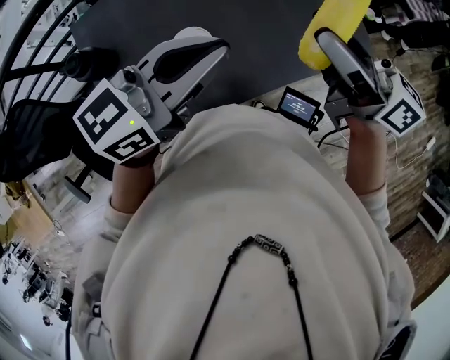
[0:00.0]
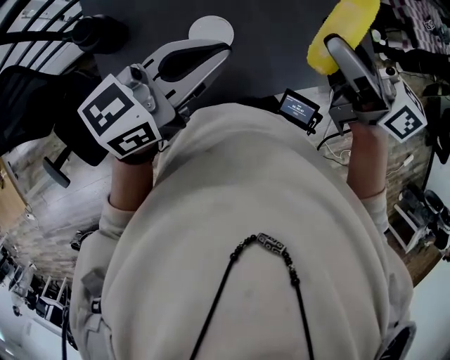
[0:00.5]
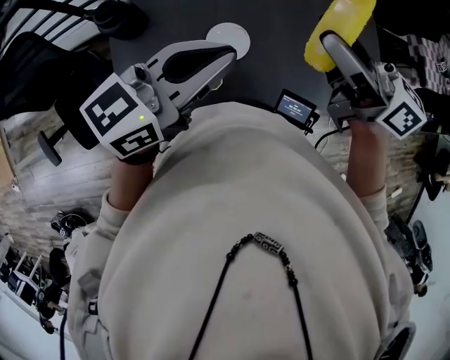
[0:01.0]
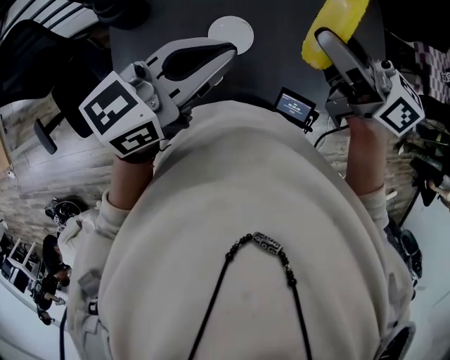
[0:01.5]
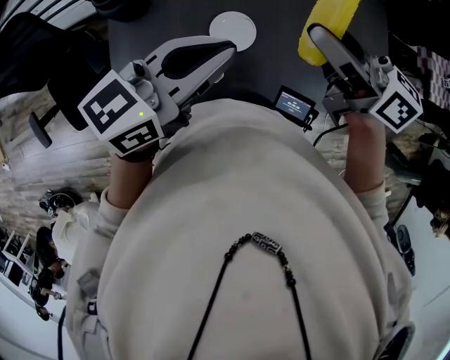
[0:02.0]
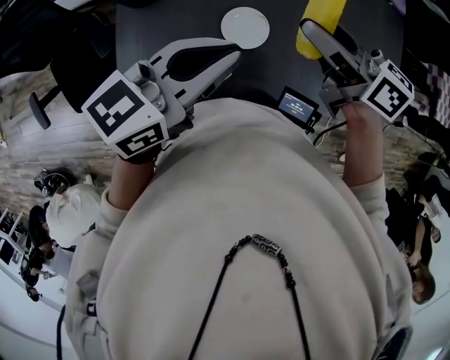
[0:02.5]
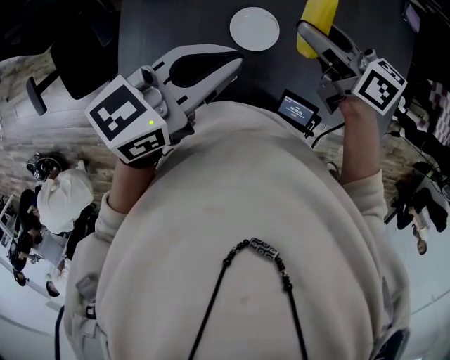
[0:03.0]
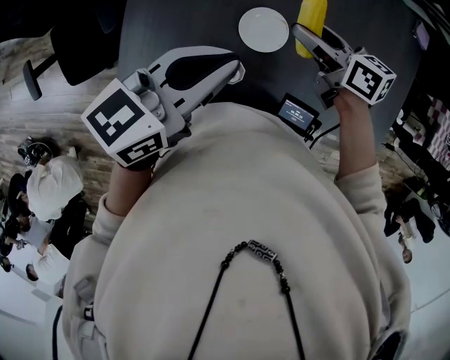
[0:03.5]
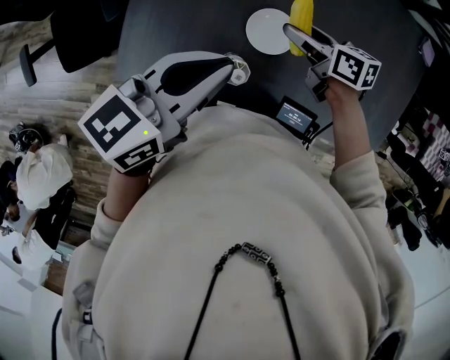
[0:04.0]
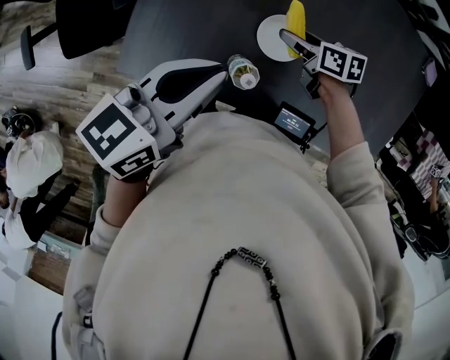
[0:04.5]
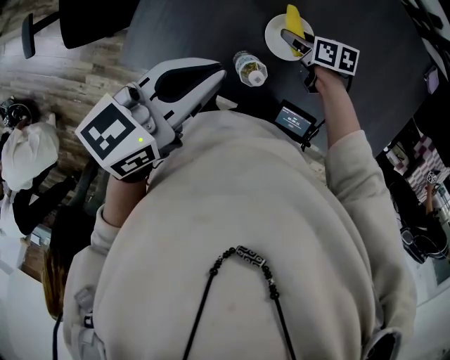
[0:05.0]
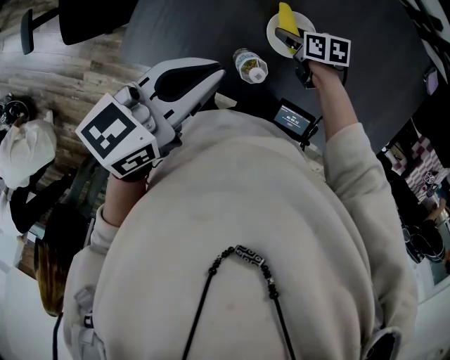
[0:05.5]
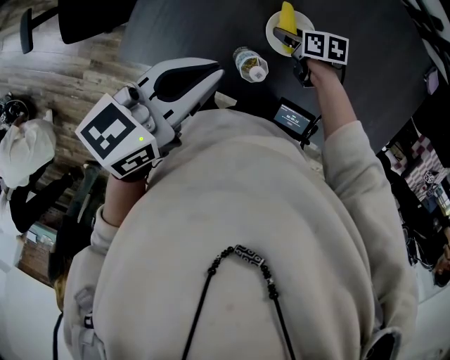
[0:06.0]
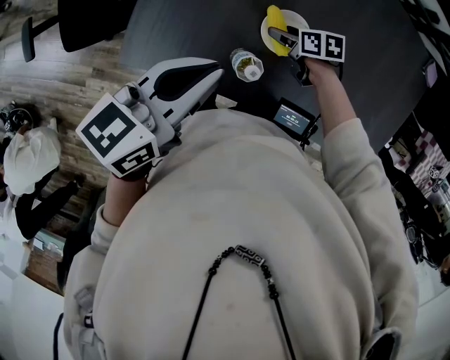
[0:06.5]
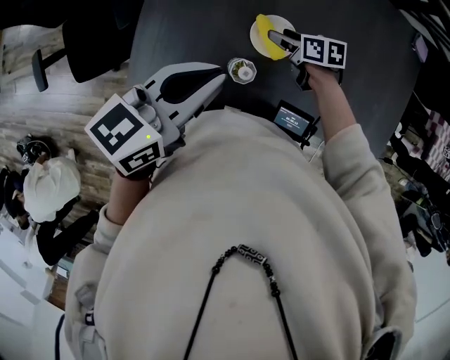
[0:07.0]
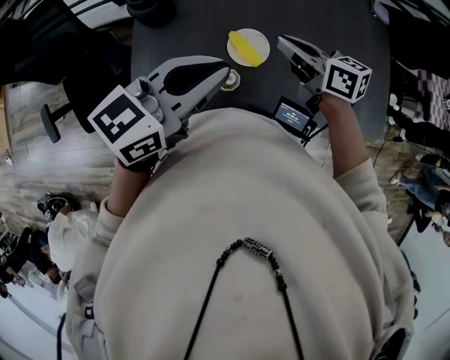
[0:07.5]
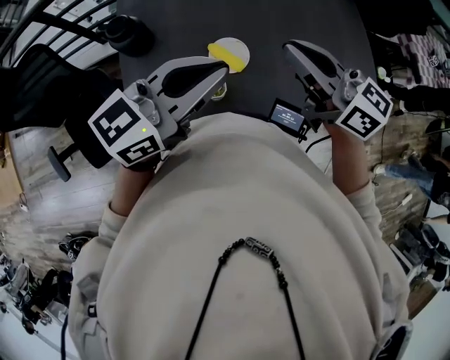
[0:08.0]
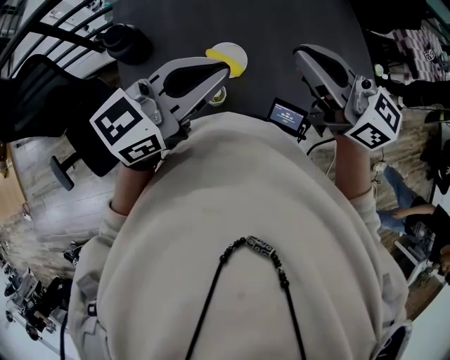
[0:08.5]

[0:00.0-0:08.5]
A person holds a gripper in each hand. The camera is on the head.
0:00.0 to 0:02.0: There are only small adjustments of the grippers.
0:02.0 to 0:04.0: The right gripper heads downward, covering some 25 cm, and turns by about 30 degrees; the left gripper moves downward, approximately 5 cm, and turns by roughly 20 degrees.
0:04.0 to 0:06.5: The right gripper goes about 15 cm downward, and rotates about 20 degrees.
0:06.5 to 0:08.5: The right gripper moves upward, about 40 cm, tilts its fingers roughly 60 degrees upward, and closes up, while the left gripper moves upward, roughly 10 cm, and changes its angle by about 50 degrees.

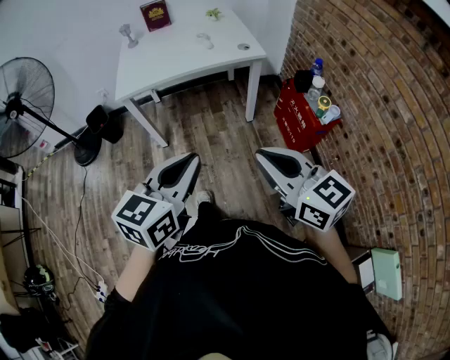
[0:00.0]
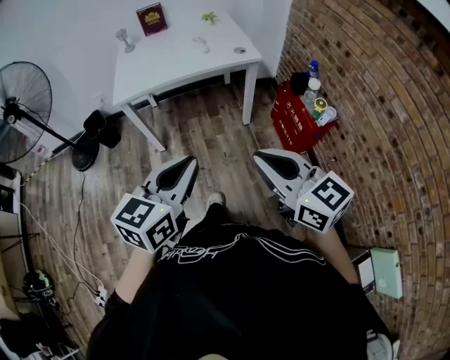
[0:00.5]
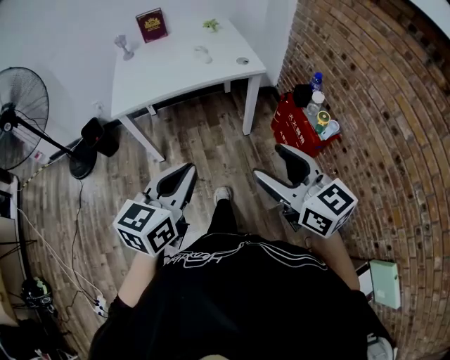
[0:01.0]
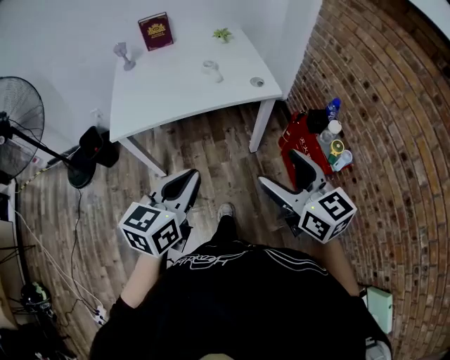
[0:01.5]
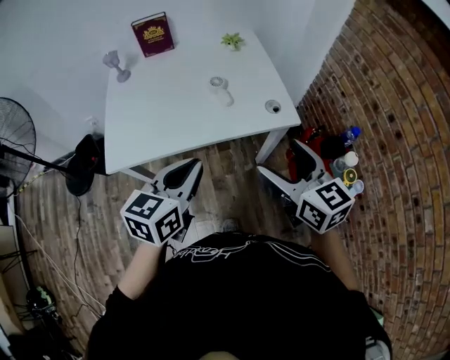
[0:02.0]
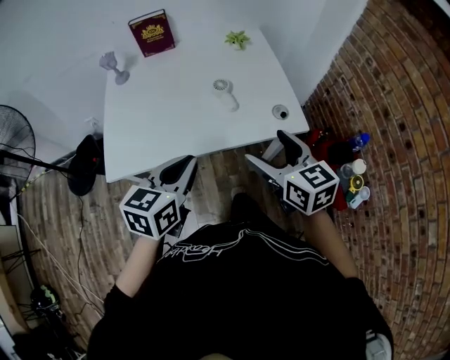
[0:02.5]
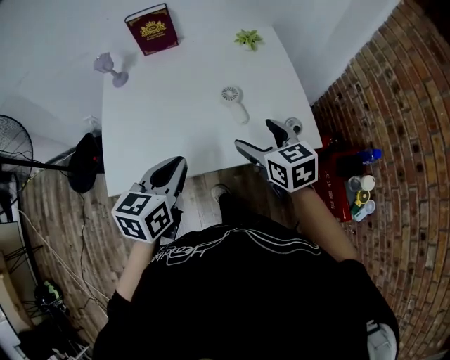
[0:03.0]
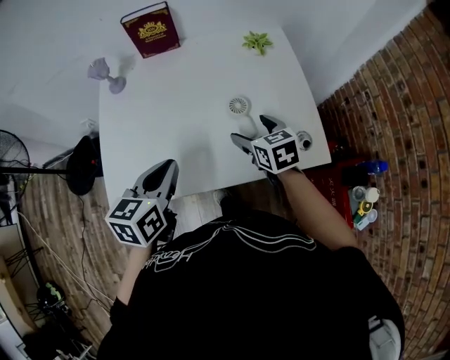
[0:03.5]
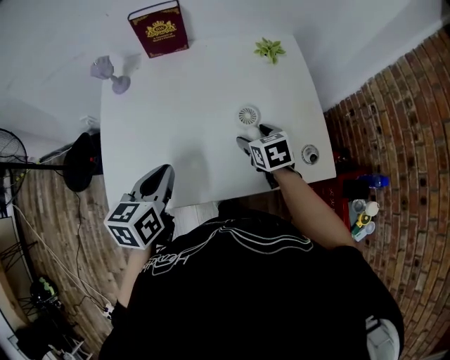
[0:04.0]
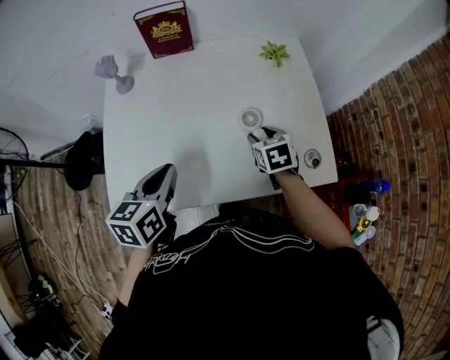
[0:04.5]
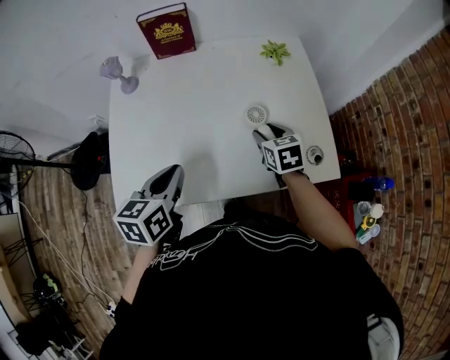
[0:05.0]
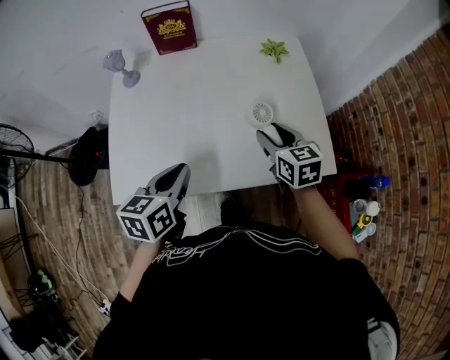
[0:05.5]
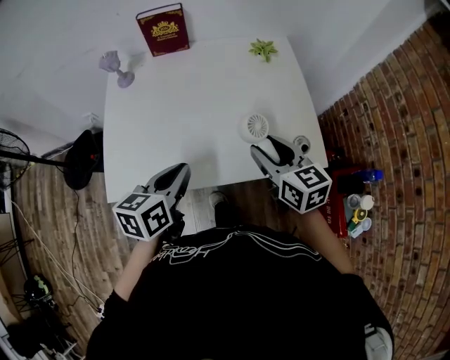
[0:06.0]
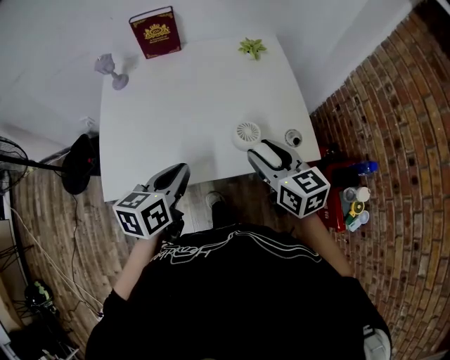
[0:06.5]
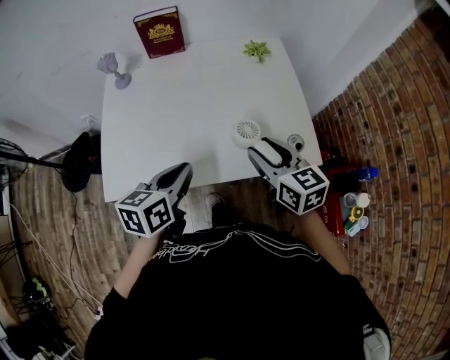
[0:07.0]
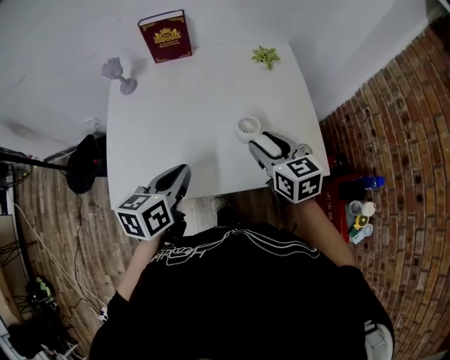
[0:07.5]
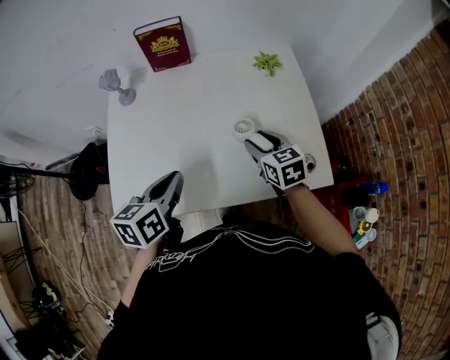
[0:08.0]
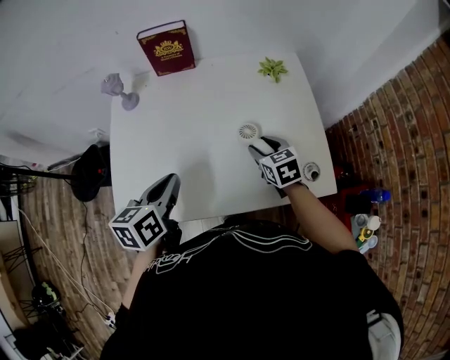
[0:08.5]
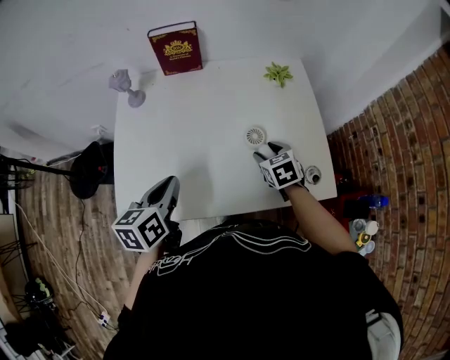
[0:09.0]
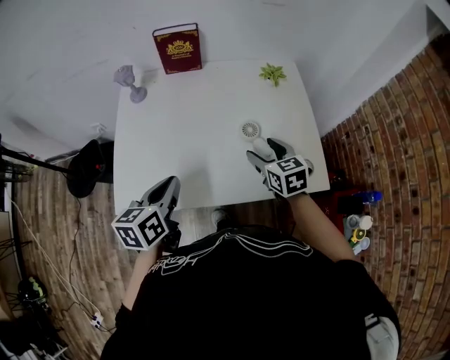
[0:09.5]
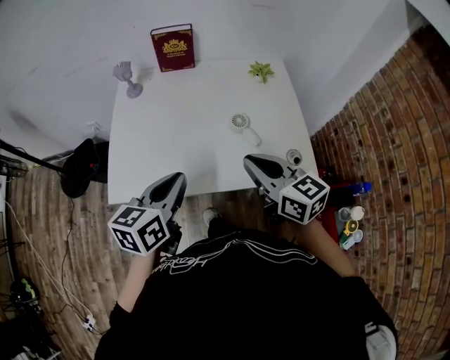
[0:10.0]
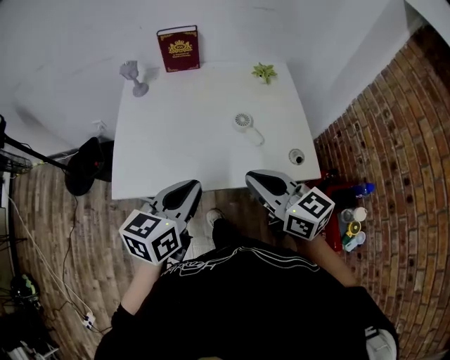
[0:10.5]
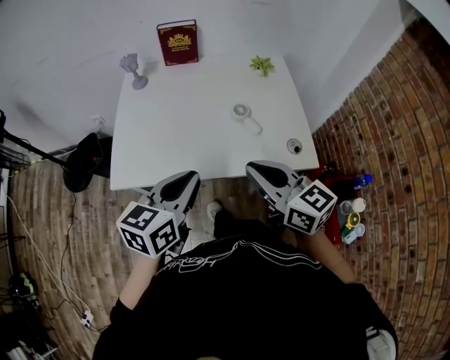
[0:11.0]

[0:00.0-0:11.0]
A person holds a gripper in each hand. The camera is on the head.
0:00.0 to 0:02.0: The two grippers travel together, forward, some 40 cm. The right gripper opens its fingers.
0:02.0 to 0:03.5: The left gripper heads forward and to the left, covering about 20 cm. The right gripper heads forward and downward, covering approximately 35 cm, and swivels roughly 30 degrees.
0:03.5 to 0:05.5: The right gripper goes downward and returns, some 5 cm each way, and closes up.
0:05.5 to 0:07.5: The right gripper reaches approximately 10 cm backward, then returns.
0:07.5 to 0:09.0: The left gripper moves to the left, about 5 cm, while the right gripper heads downward and forward, covering roughly 15 cm, and swivels roughly 30 degrees.
0:09.0 to 0:11.0: The right gripper travels upward and backward by approximately 30 cm, points its fingers some 40 degrees further upward, and closes its fingers, while the left gripper is displaced backward, upward and to the right by about 20 cm, and changes its angle by some 20 degrees.

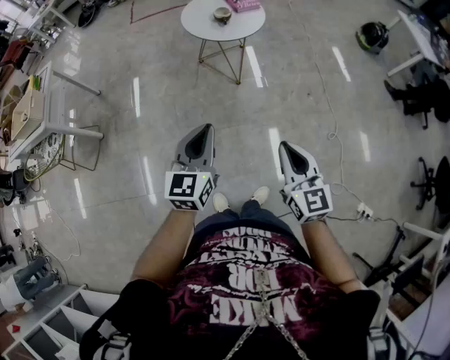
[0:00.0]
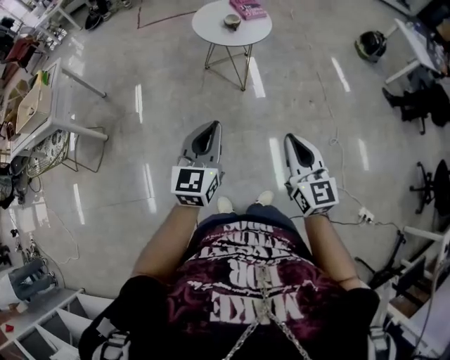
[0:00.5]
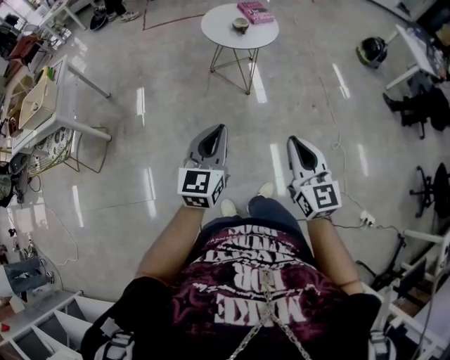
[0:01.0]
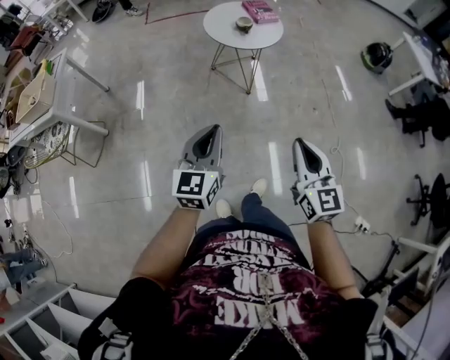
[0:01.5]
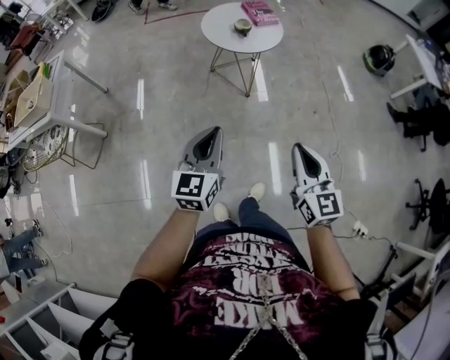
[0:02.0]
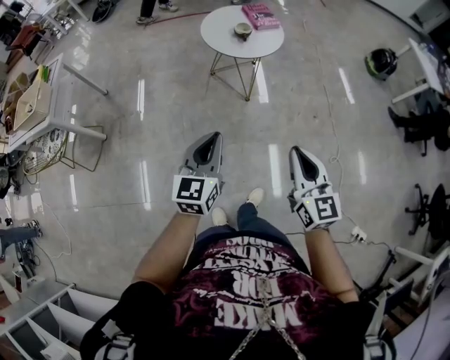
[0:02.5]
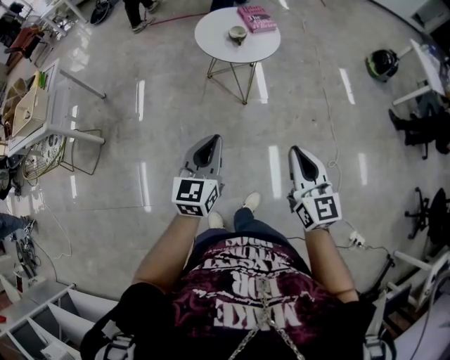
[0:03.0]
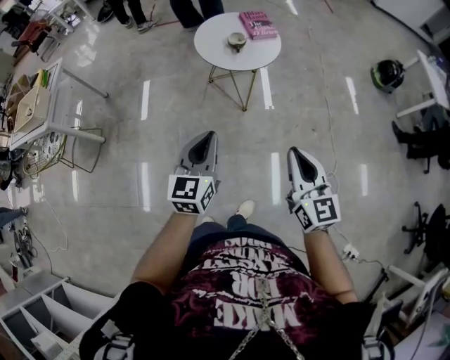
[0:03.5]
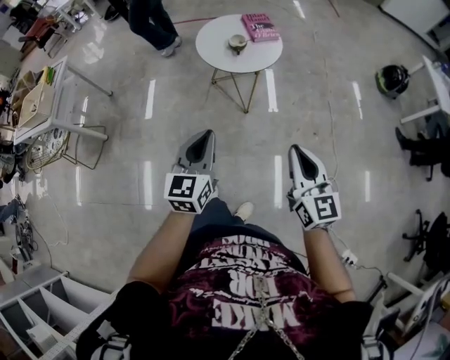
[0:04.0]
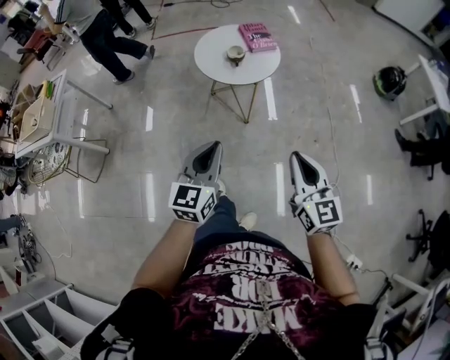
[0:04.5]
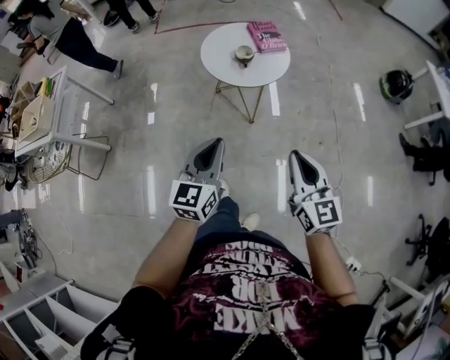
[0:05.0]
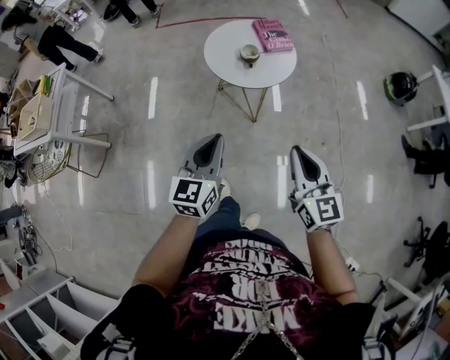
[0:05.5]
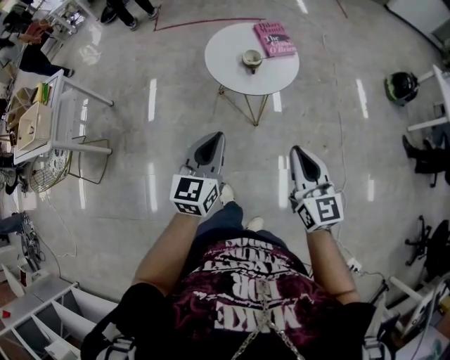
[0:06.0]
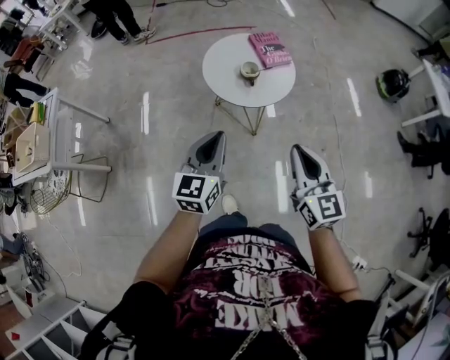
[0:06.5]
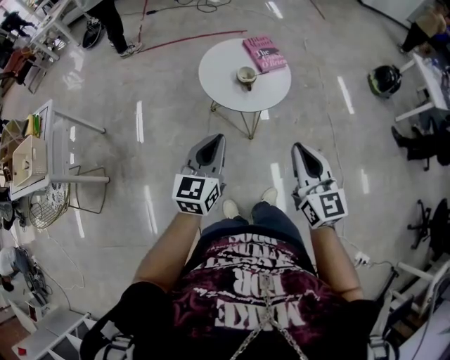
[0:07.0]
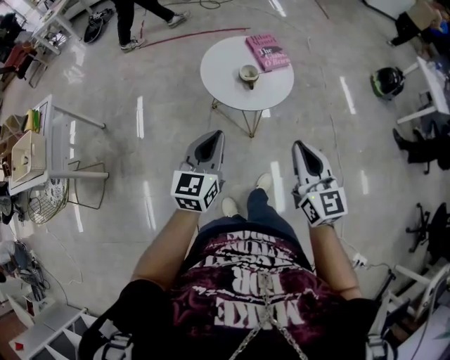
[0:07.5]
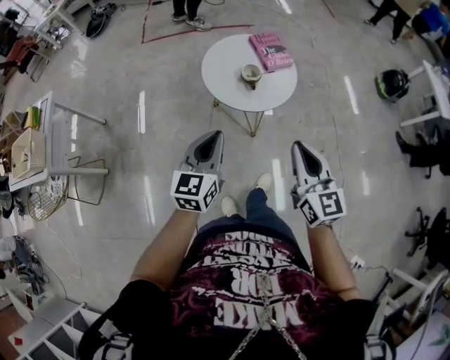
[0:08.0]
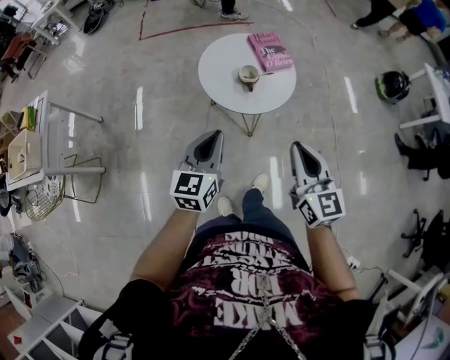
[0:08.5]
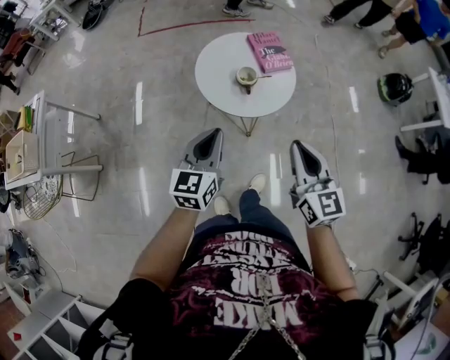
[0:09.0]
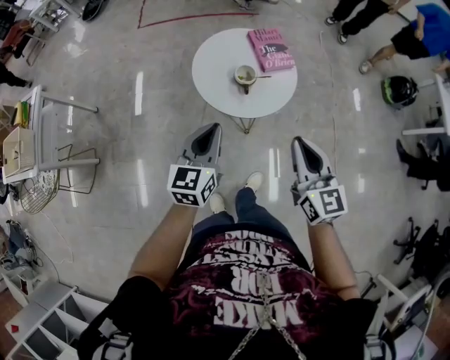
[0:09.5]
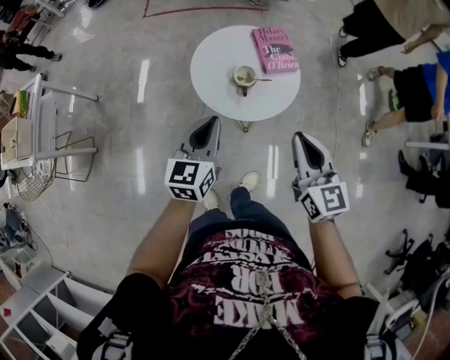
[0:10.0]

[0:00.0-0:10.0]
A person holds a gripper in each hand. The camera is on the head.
0:02.0 to 0:04.0: The grippers both shift forward and to the right by approximately 15 cm.
0:04.0 to 0:06.0: The right gripper shifts approximately 15 cm forward and to the left. The left gripper travels forward by roughly 15 cm.
0:06.0 to 0:08.0: The two grippers go roughly 10 cm forward.
0:08.0 to 0:10.0: Both grippers move forward and to the right, about 15 cm.
